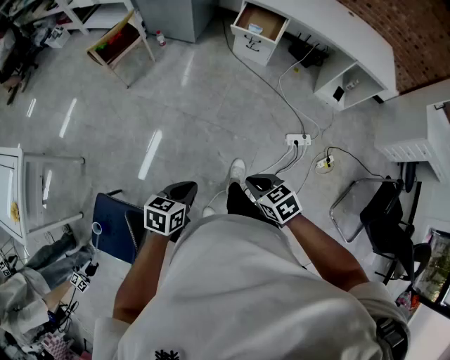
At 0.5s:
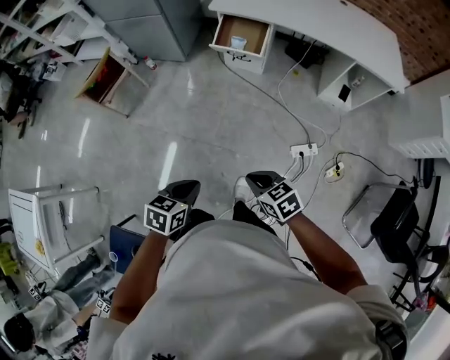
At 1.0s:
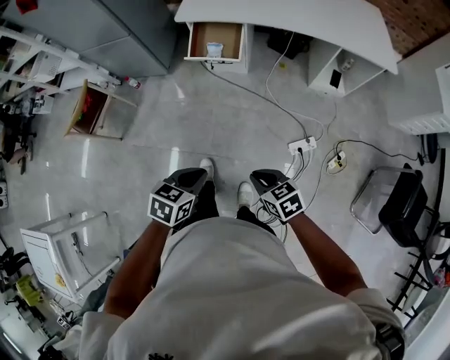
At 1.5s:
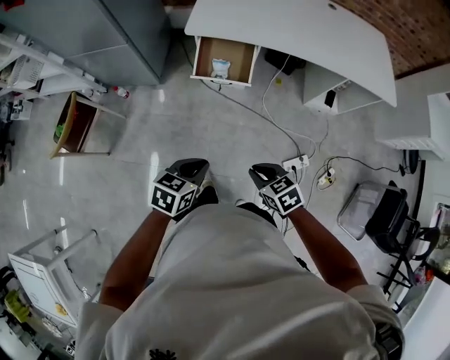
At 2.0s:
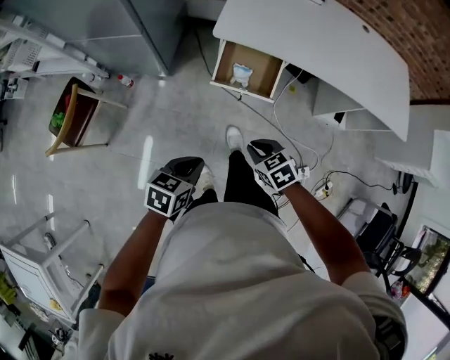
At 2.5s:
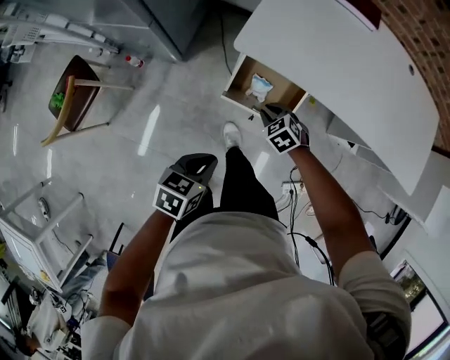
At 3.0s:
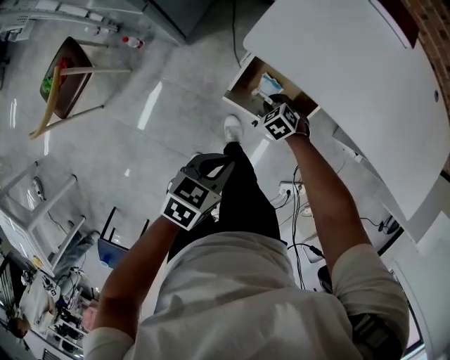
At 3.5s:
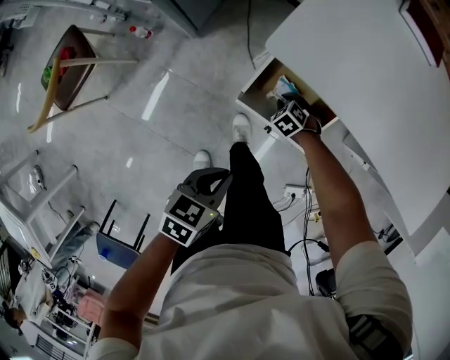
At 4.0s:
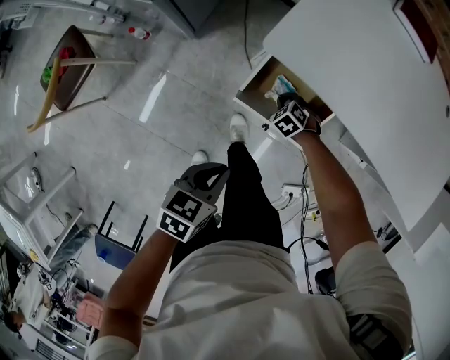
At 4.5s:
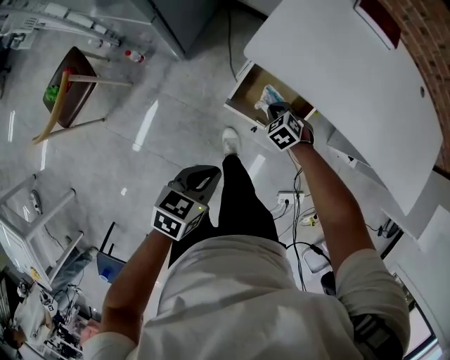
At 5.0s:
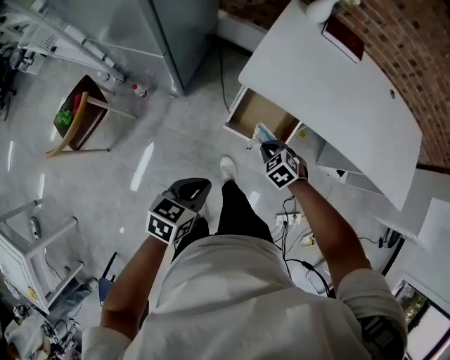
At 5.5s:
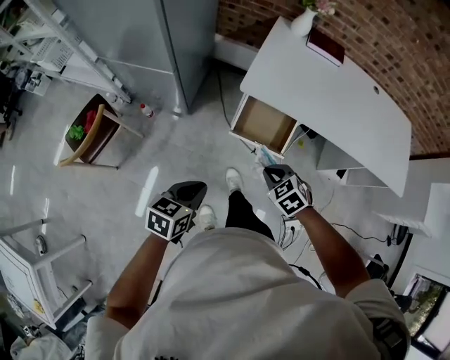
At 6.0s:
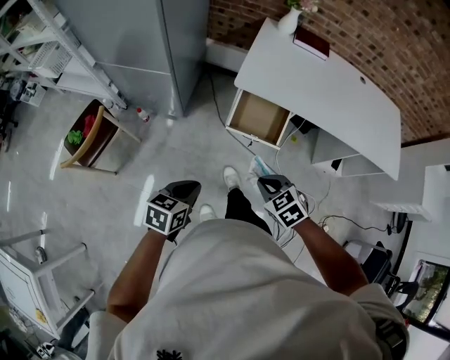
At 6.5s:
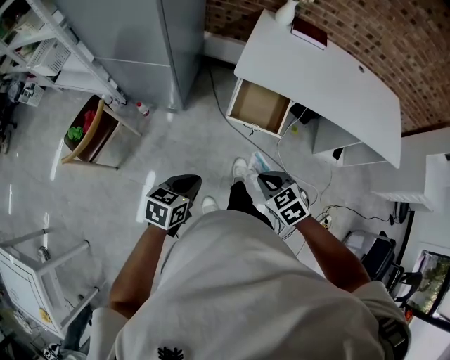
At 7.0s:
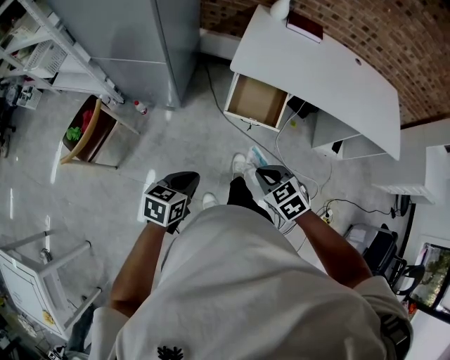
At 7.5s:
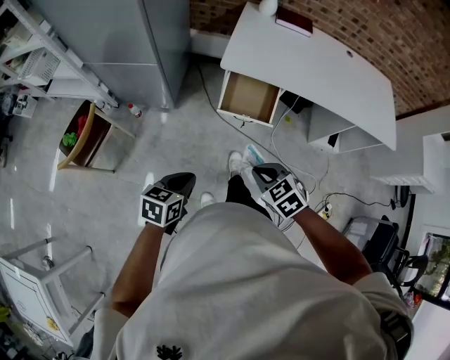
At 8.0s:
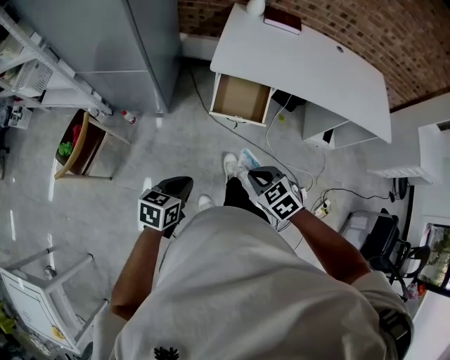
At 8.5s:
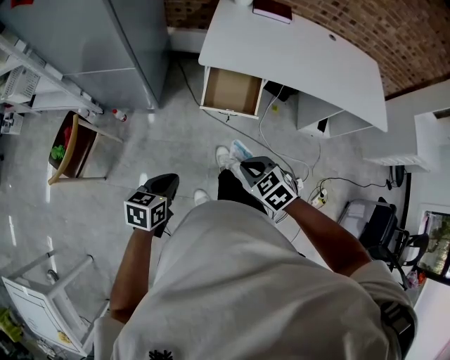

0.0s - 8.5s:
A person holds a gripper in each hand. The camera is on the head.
0.0s - 2.0s: The two grippers travel together, forward, approximately 70 cm.
2.0s - 4.0s: The left gripper changes place by roughly 30 cm; the right gripper ends up approximately 50 cm from where it was, and changes its angle by approximately 40 degrees.
4.0s - 6.5s: The left gripper ends up about 35 cm from where it was, while the right gripper shifts by some 60 cm, and swivels roughly 30 degrees.
6.5s - 8.5s: The grippers move only a little.

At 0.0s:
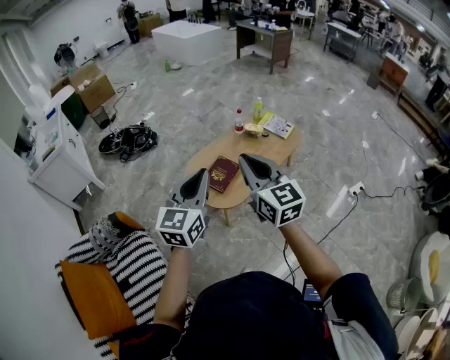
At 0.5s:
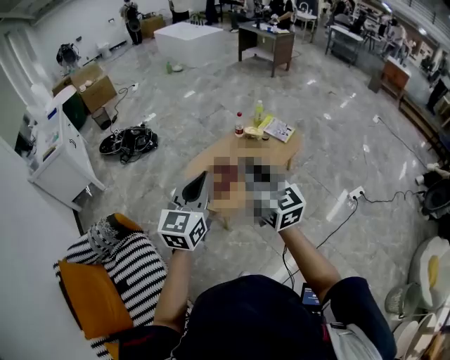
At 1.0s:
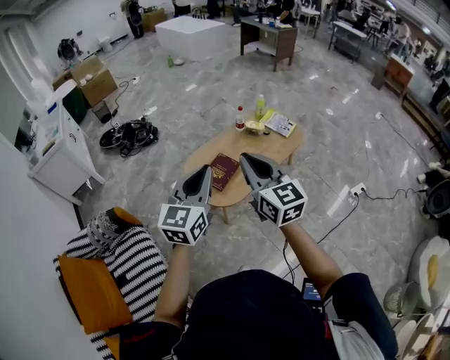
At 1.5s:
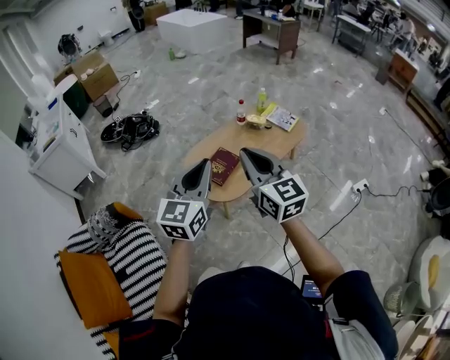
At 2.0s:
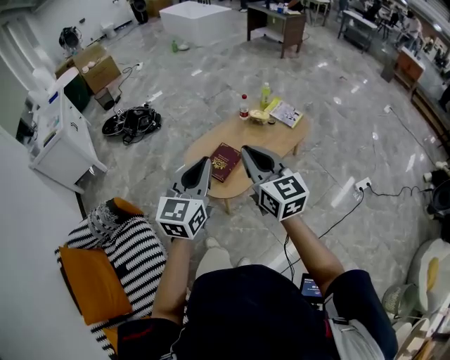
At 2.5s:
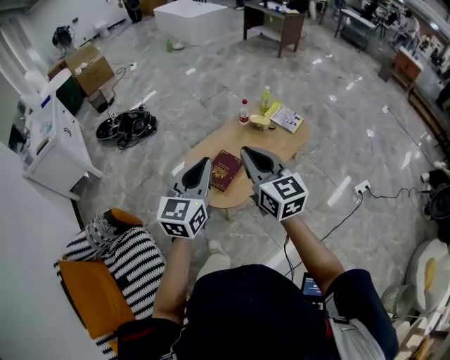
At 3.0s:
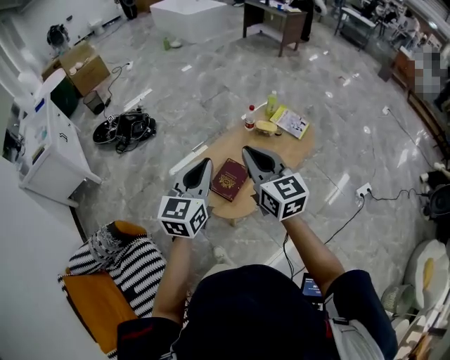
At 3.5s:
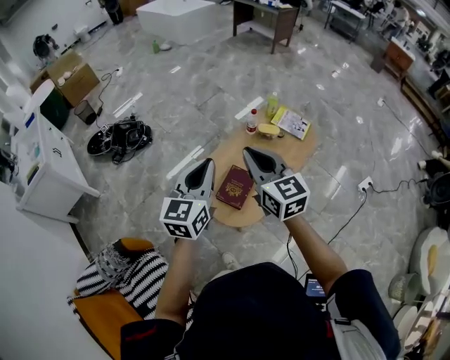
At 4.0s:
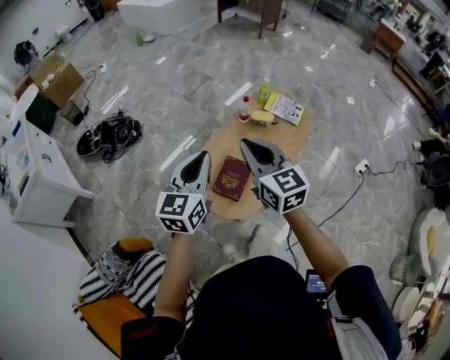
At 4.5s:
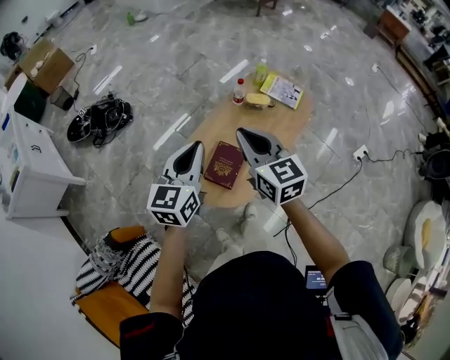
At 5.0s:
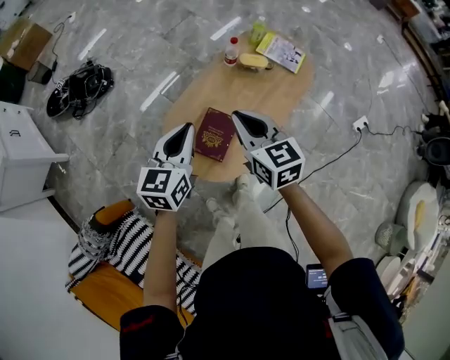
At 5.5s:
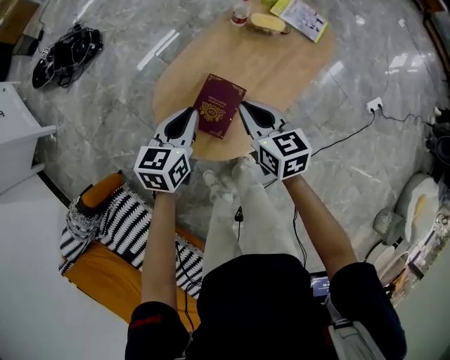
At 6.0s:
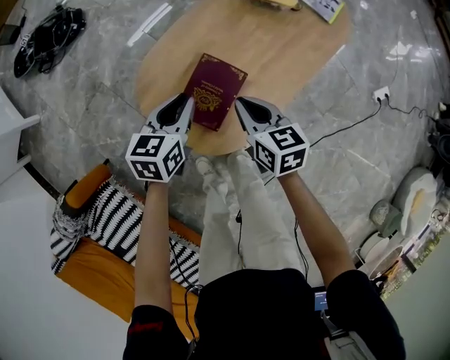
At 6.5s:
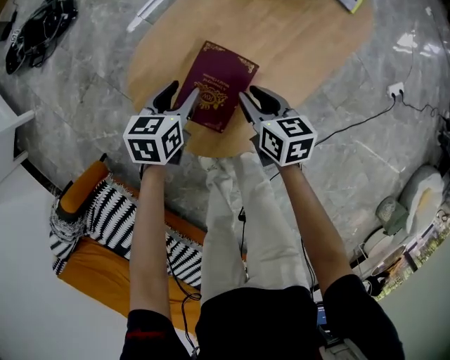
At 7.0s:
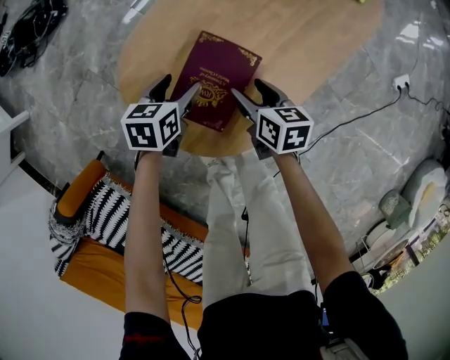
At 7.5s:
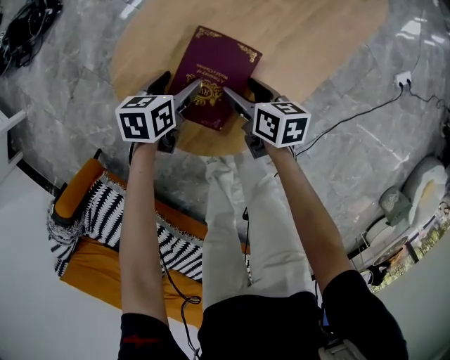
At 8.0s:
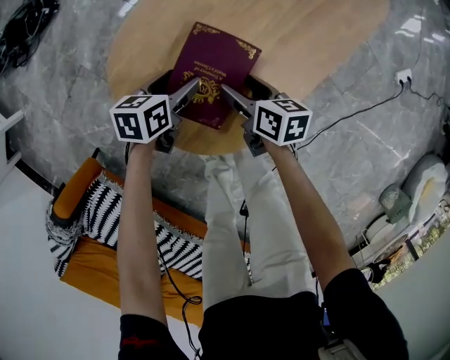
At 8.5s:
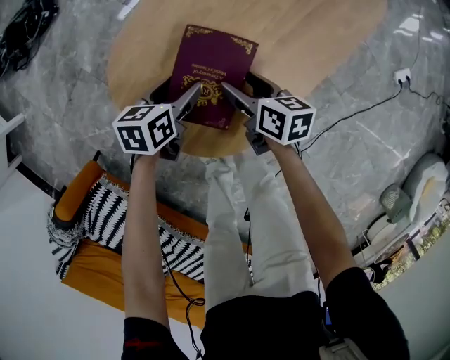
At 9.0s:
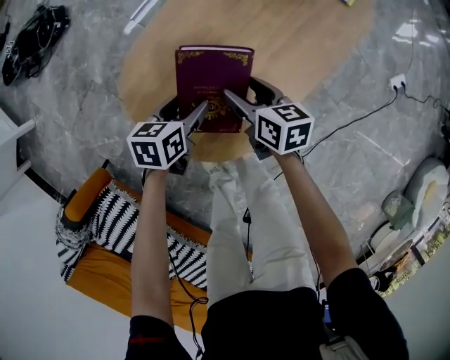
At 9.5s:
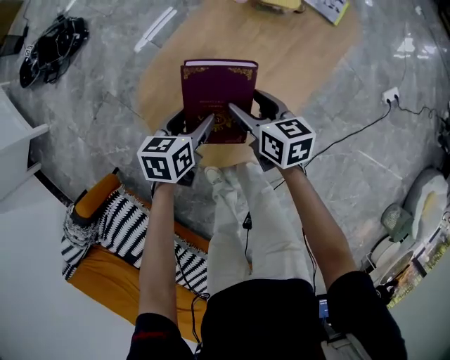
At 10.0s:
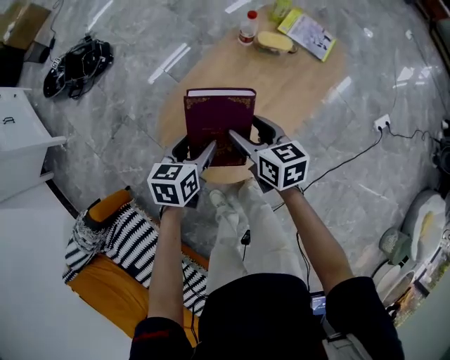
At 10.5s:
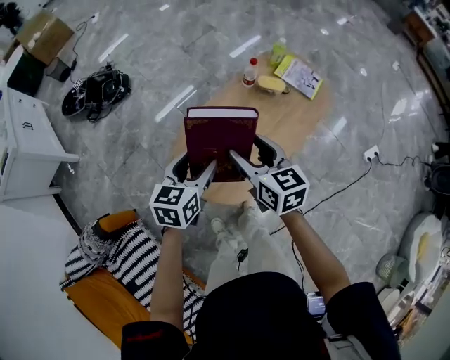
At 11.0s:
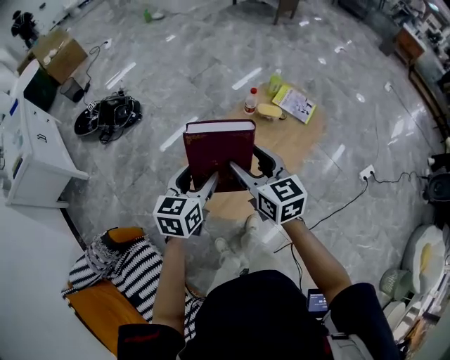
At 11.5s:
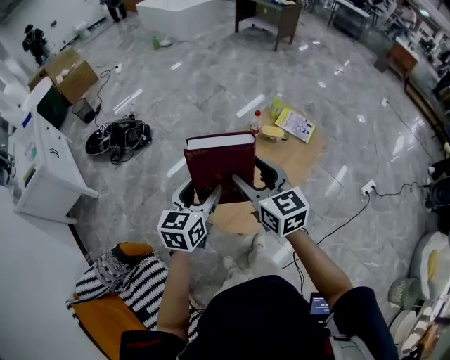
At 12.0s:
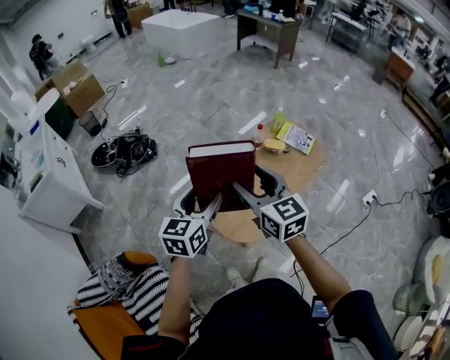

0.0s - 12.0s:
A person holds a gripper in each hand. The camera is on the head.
0.0s - 2.0s: The left gripper changes place by some 5 cm. The right gripper shifts by approximately 5 cm.
2.0s - 4.0s: The grippers both shift forward and to the left by roughly 25 cm.
4.0s - 6.0s: The grippers both shift downward by about 40 cm. The left gripper swivels some 30 degrees. Meanwhile the right gripper rotates about 40 degrees.
6.0s - 8.0s: Both grippers travel together downward, roughly 20 cm. The right gripper turns by about 20 degrees, and opens up. Meanwhile the left gripper swivels some 20 degrees, and opens.
8.0s - 10.0s: Both grippers travel together upward, about 25 cm. The right gripper swivels approximately 20 degrees.
10.0s - 12.0s: The grippers both shift upward by roughly 35 cm. The right gripper changes its angle by approximately 30 degrees. The left gripper swivels roughly 30 degrees.

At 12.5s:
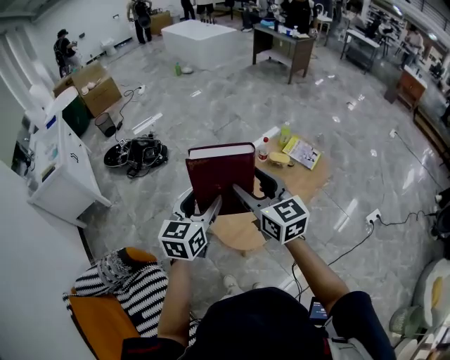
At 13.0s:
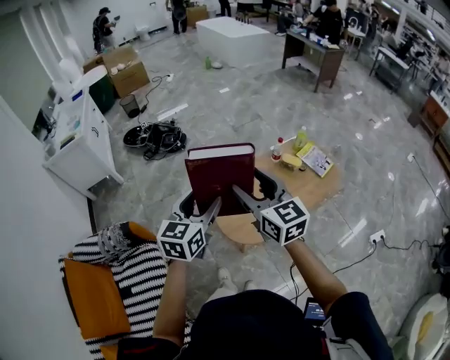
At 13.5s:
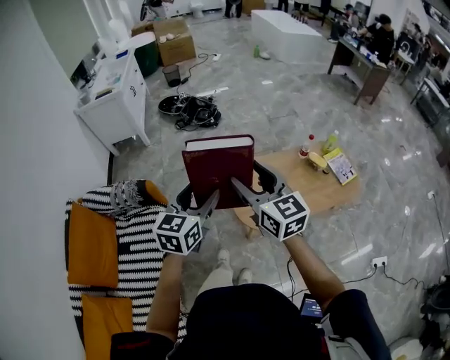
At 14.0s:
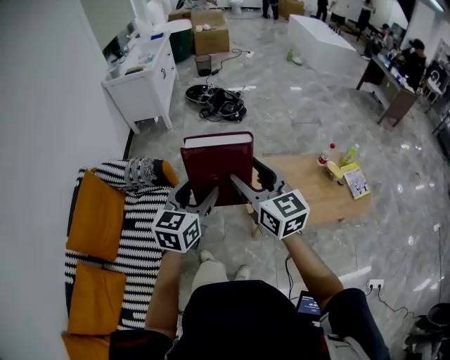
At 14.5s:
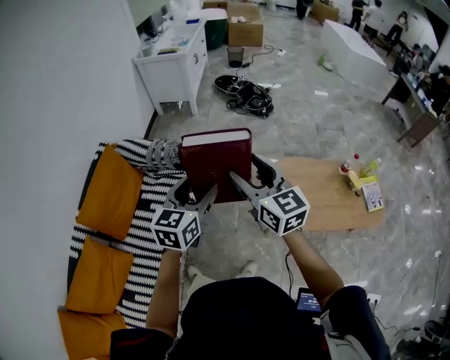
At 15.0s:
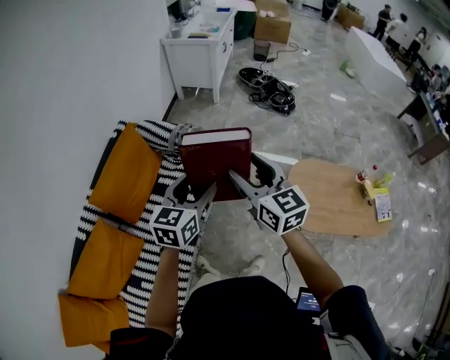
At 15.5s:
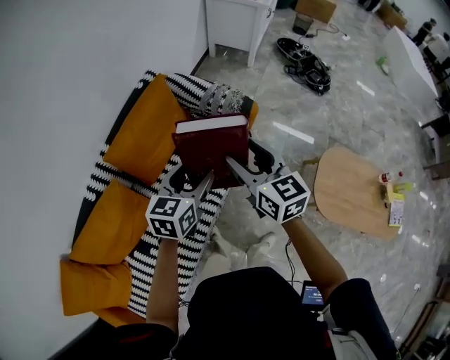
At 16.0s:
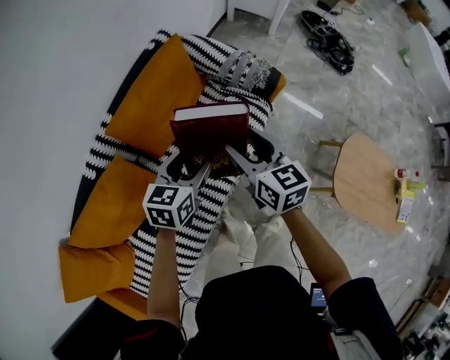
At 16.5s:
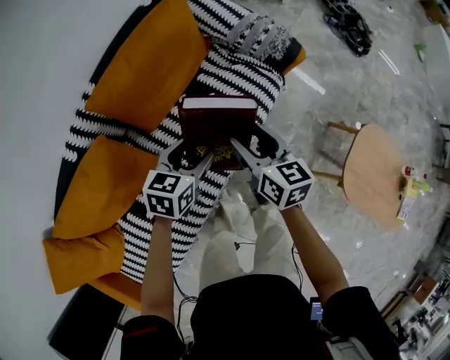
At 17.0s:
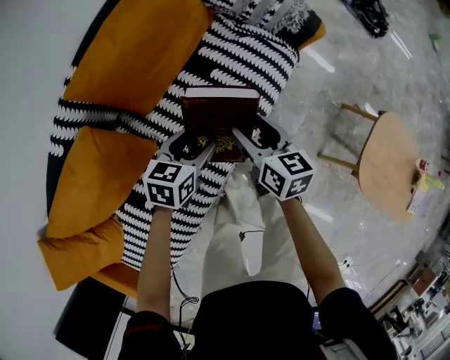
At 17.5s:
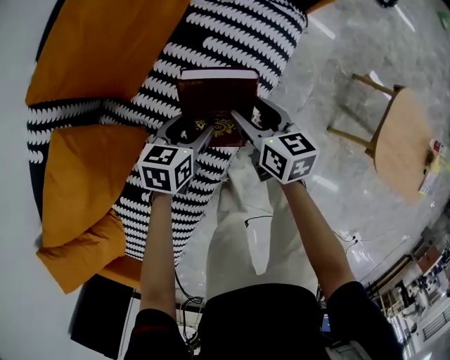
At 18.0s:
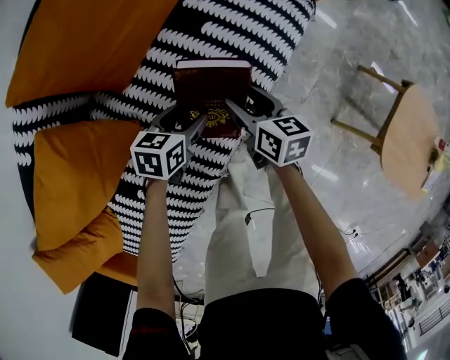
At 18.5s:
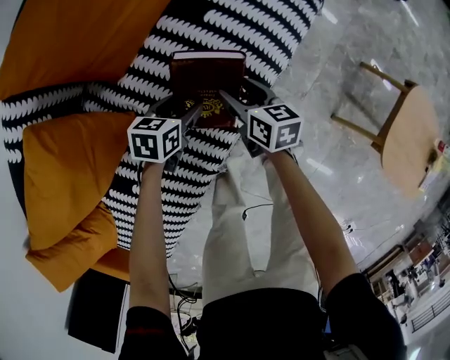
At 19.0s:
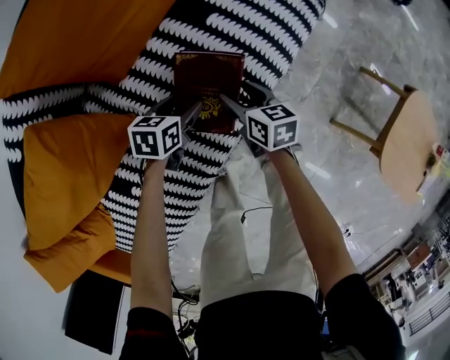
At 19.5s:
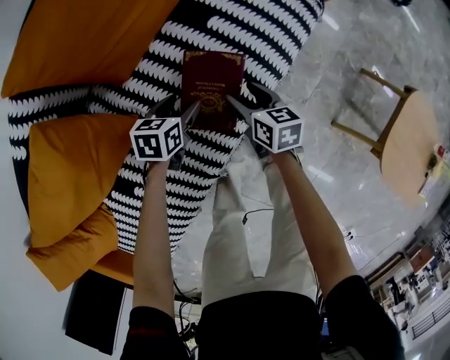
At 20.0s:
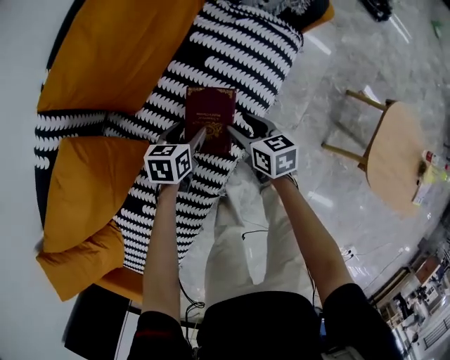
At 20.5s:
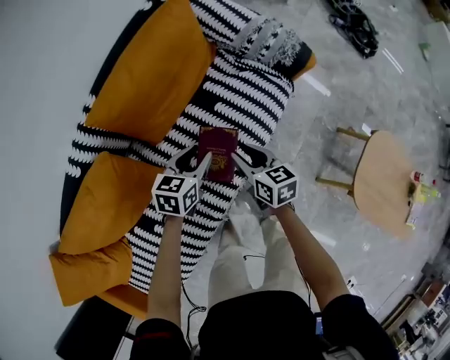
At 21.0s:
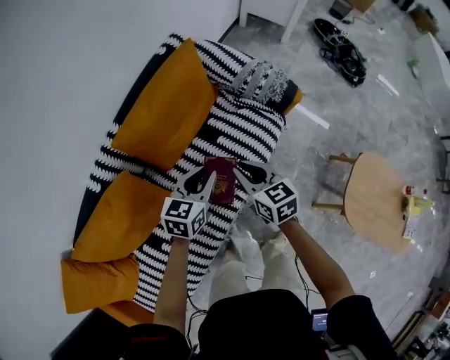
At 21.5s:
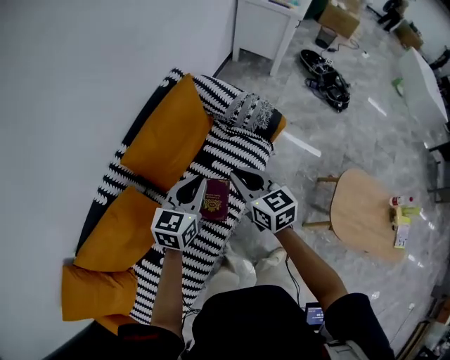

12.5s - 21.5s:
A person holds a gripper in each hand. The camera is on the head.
12.5s - 14.5s: The right gripper changes place by some 30 cm, and changes its angle by roughly 50 degrees; the left gripper shifts by approximately 35 cm, and changes its angle by approximately 40 degrees.
14.5s - 17.0s: Both grippers are carried to the left, approximately 40 cm. The grippers both shift downward by about 50 cm. The right gripper swivels approximately 40 degrees. The left gripper turns by approximately 40 degrees.
17.0s - 19.5s: Both grippers move downward, about 20 cm.
19.5s - 21.5s: The two grippers go roughly 50 cm upward. The left gripper points its fingers about 30 degrees further upward, and closes, while the right gripper swivels roughly 30 degrees, and closes its fingers.
